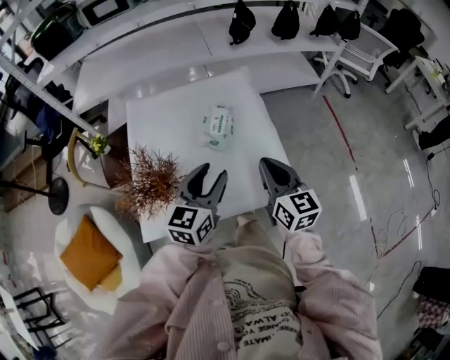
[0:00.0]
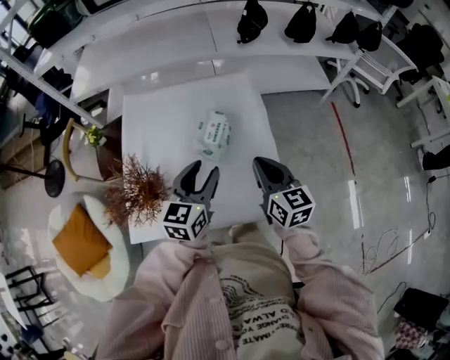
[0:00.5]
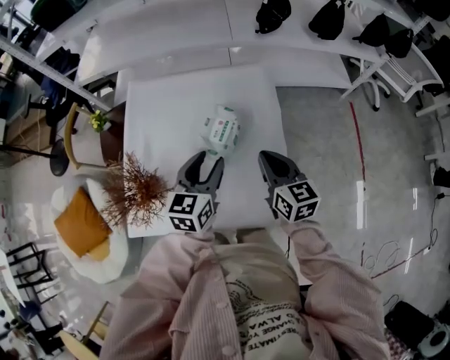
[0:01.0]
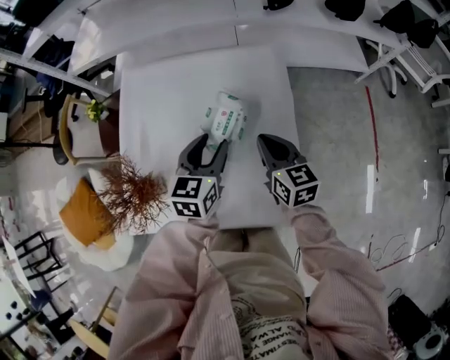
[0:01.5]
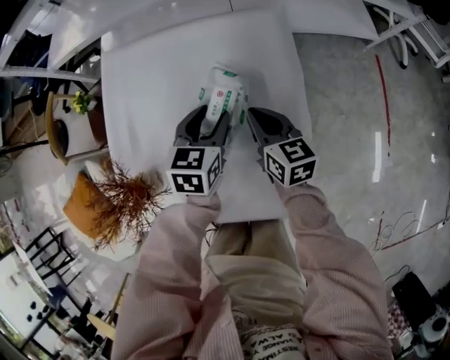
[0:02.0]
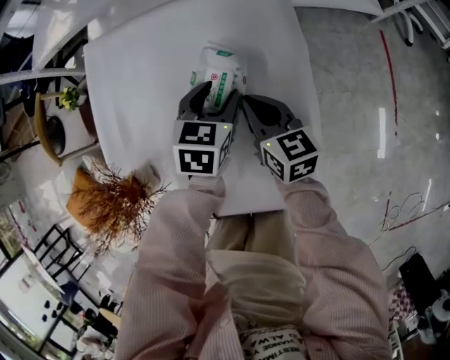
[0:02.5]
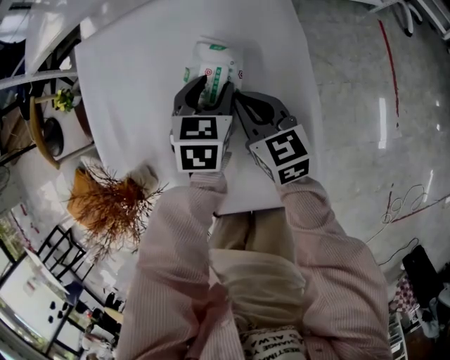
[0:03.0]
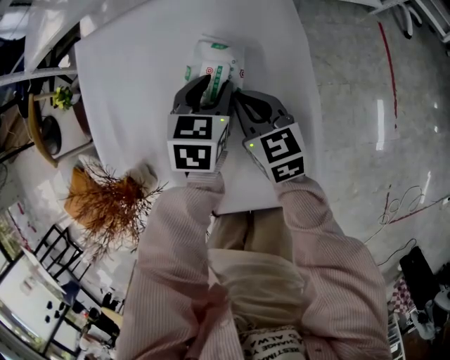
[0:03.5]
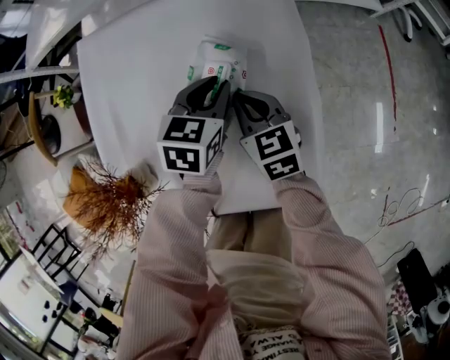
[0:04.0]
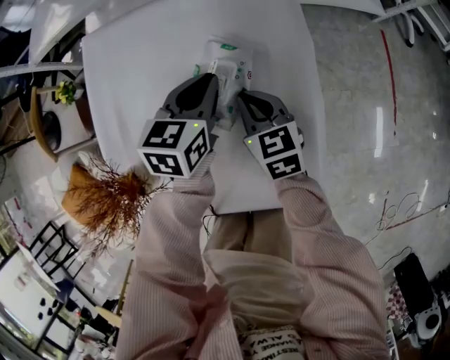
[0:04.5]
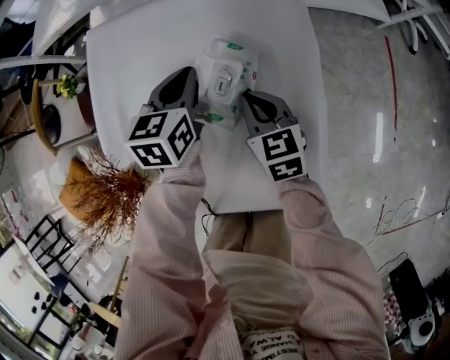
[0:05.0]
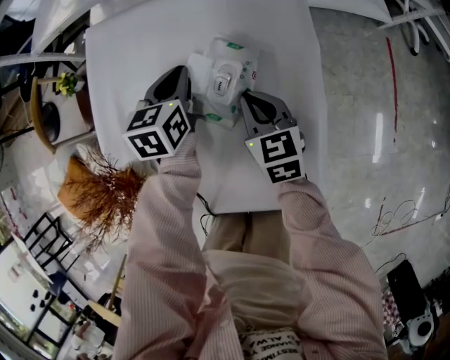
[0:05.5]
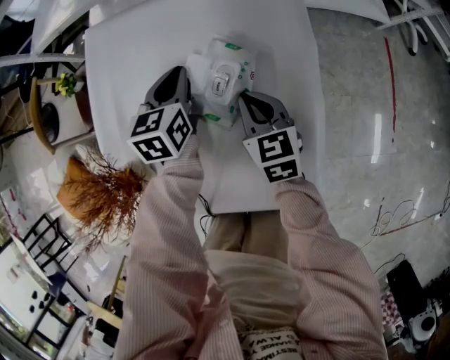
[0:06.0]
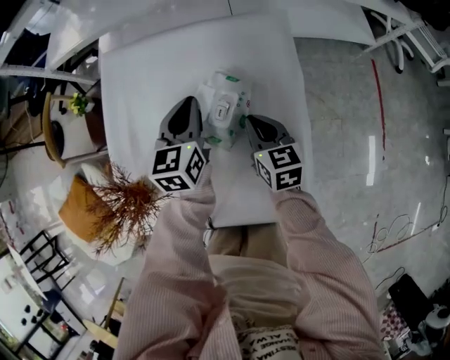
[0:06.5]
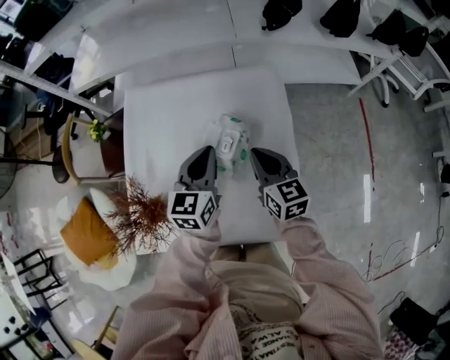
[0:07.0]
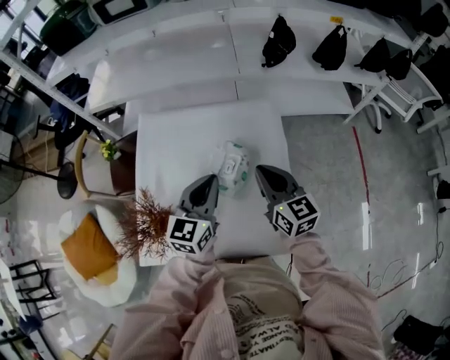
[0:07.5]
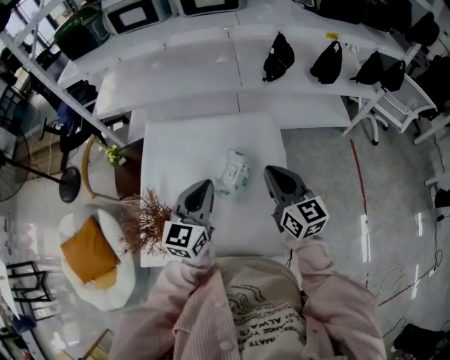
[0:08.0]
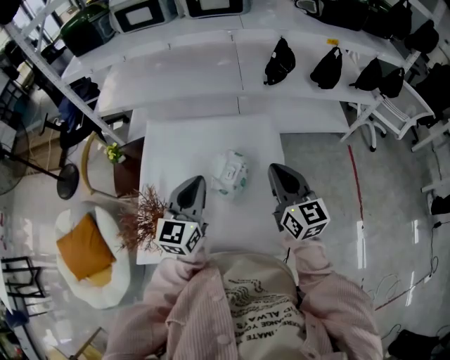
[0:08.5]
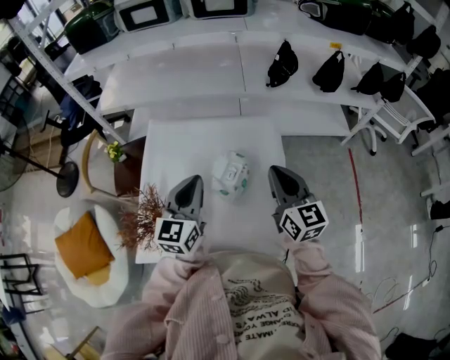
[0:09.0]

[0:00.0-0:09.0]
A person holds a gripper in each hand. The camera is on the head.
0:00.0 to 0:02.0: The grippers both shift forward and downward by approximately 30 cm. The right gripper turns by approximately 20 degrees. The left gripper changes its angle by approximately 30 degrees.
0:02.0 to 0:04.5: The right gripper moves roughly 5 cm, while the left gripper closes.
0:04.5 to 0:07.0: The two grippers go roughly 10 cm upward.
0:07.0 to 0:09.0: The left gripper shifts about 15 cm upward, backward and to the left. The right gripper moves upward, some 15 cm.

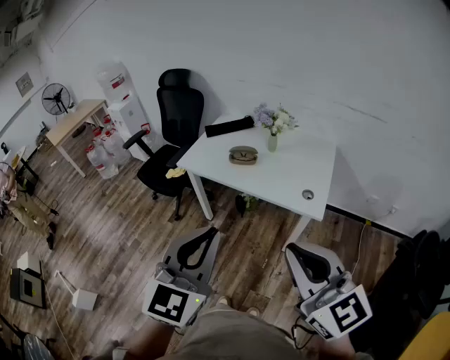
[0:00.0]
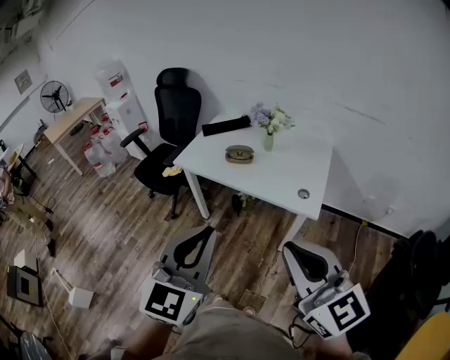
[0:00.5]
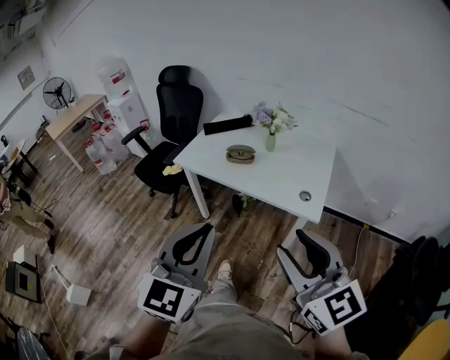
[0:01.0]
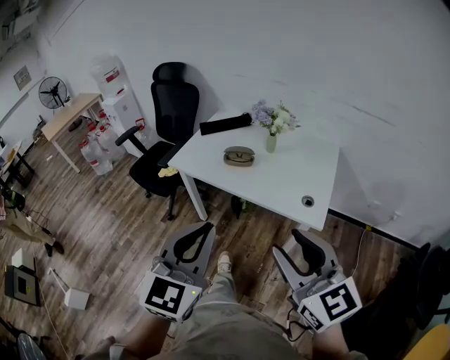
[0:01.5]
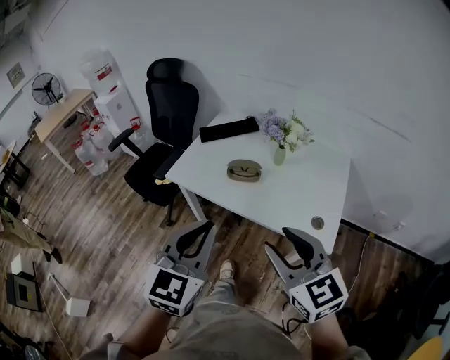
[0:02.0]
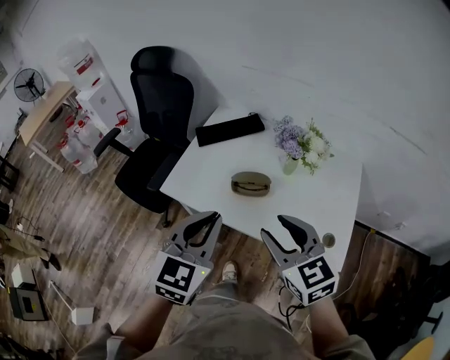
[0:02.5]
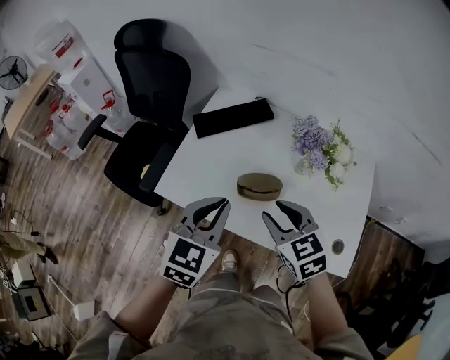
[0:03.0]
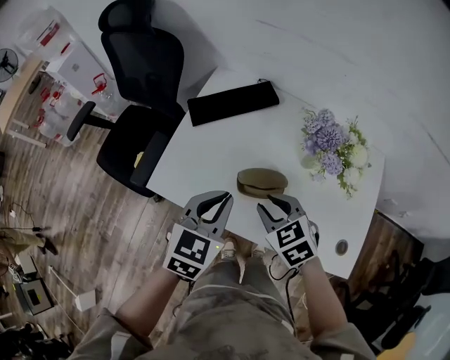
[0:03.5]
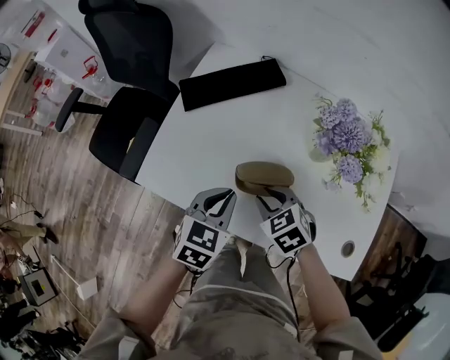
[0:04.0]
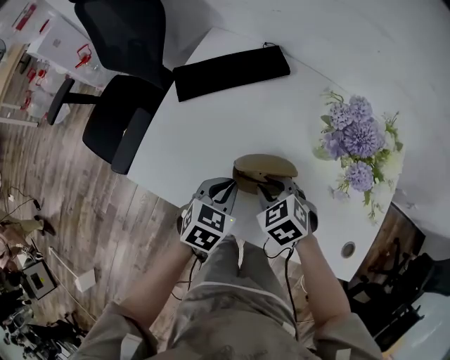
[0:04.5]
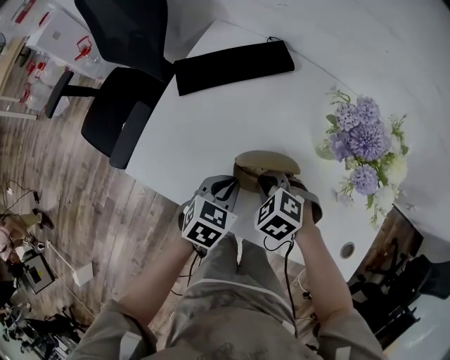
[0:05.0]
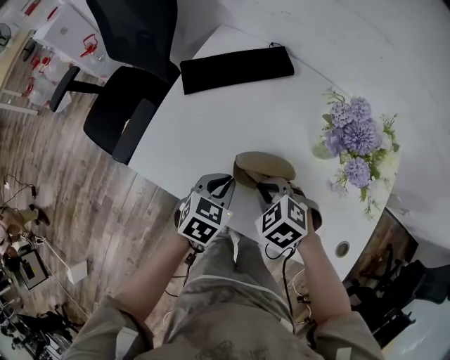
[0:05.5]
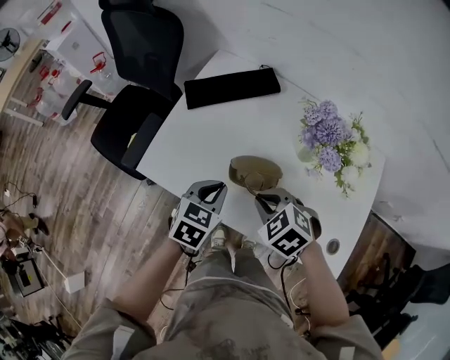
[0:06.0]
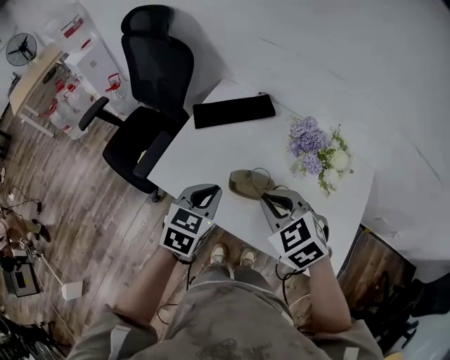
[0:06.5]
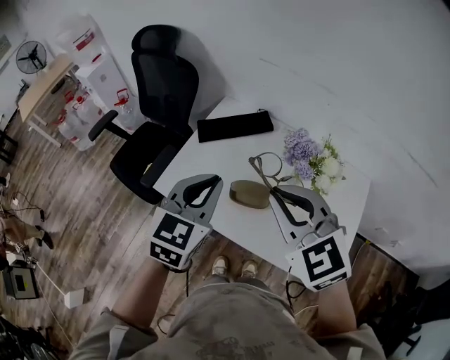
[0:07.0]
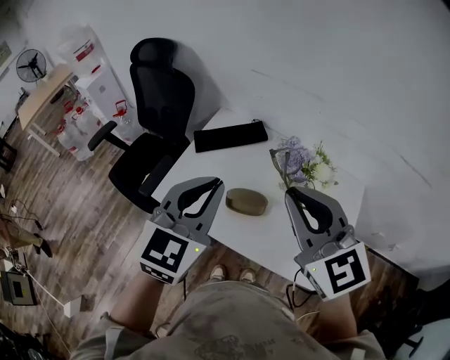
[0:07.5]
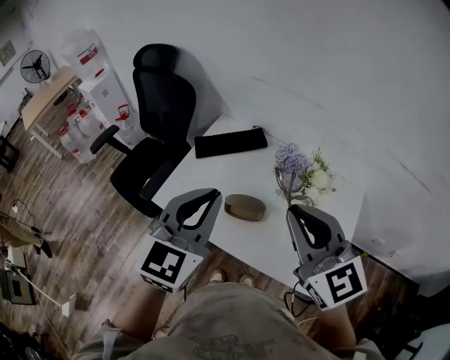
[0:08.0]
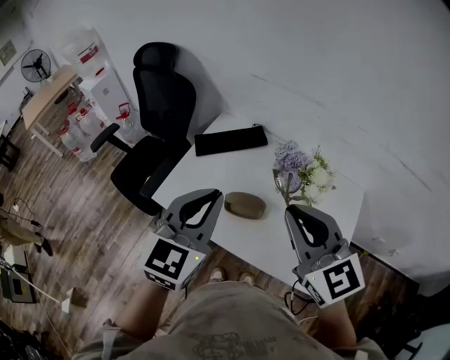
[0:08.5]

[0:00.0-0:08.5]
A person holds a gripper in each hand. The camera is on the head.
0:00.0 to 0:02.0: The right gripper moves forward and downward, about 25 cm, and opens. The left gripper heads forward, covering roughly 25 cm.
0:02.0 to 0:04.0: Both grippers travel together forward and downward, about 50 cm. The left gripper swivels roughly 30 degrees, while the right gripper tips its fingers downward by about 40 degrees.
0:04.0 to 0:06.5: The left gripper heads upward, covering roughly 10 cm. The right gripper moves upward, about 20 cm, and rotates roughly 20 degrees.
0:06.5 to 0:08.5: Both grippers travel together upward, about 20 cm. The right gripper angles its fingers upward, by about 30 degrees. Meanwhile the left gripper rotates about 30 degrees.

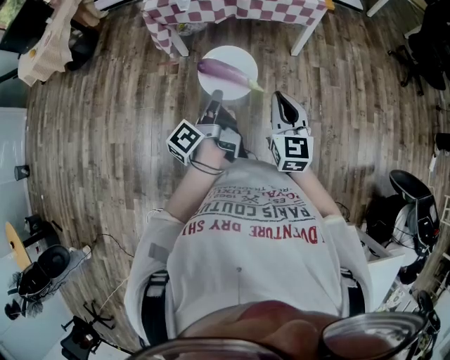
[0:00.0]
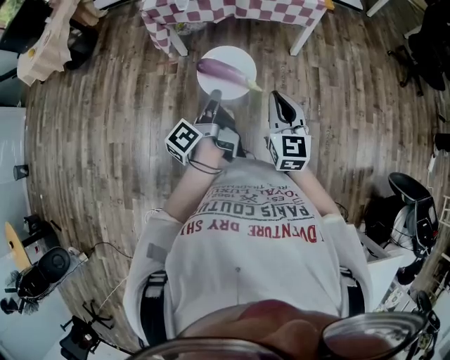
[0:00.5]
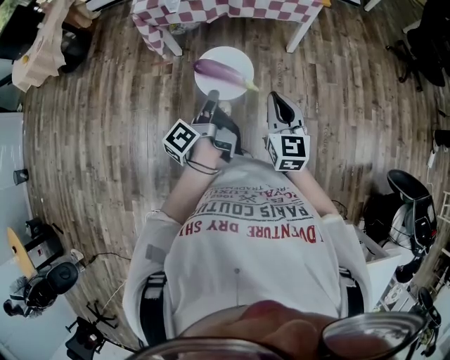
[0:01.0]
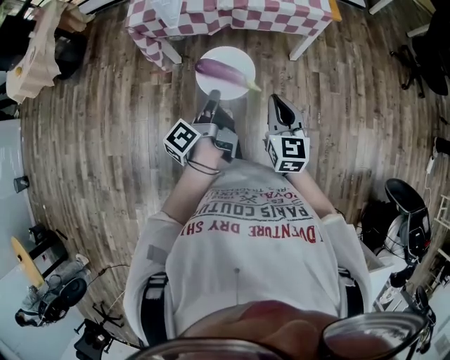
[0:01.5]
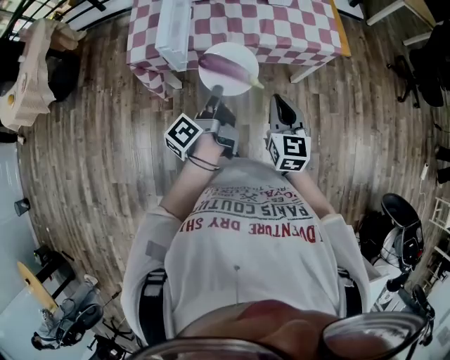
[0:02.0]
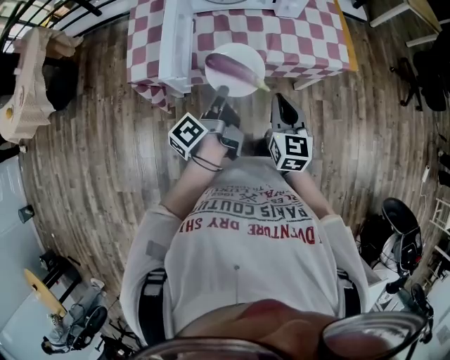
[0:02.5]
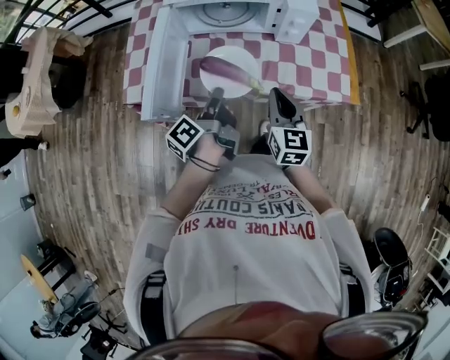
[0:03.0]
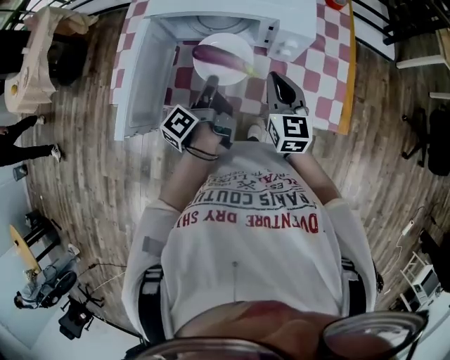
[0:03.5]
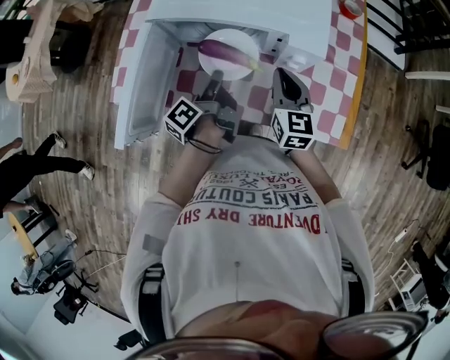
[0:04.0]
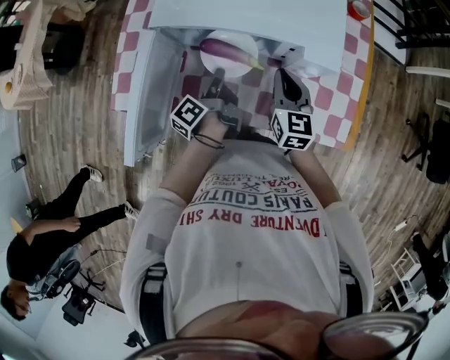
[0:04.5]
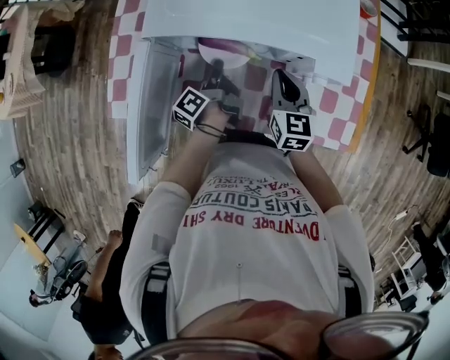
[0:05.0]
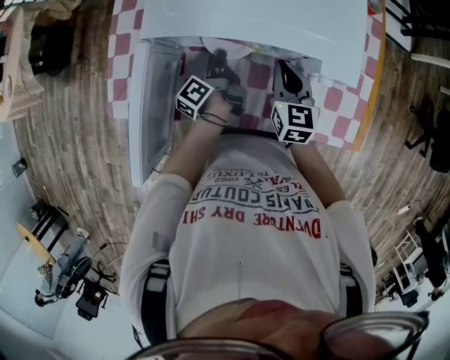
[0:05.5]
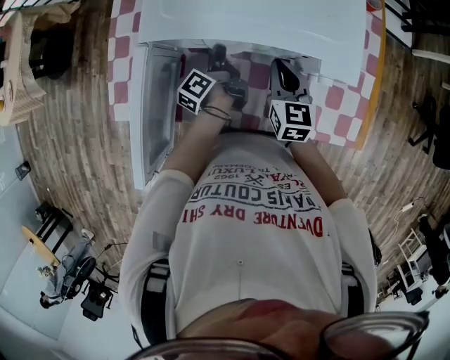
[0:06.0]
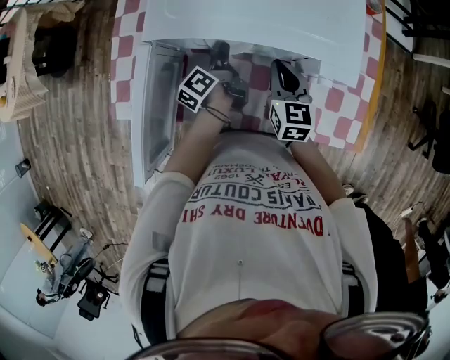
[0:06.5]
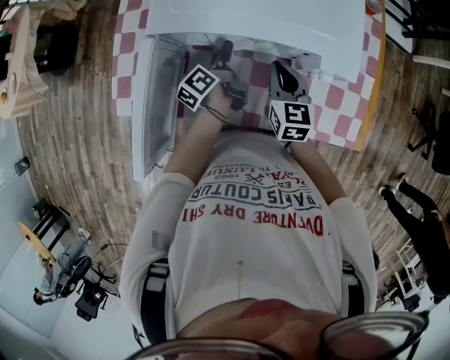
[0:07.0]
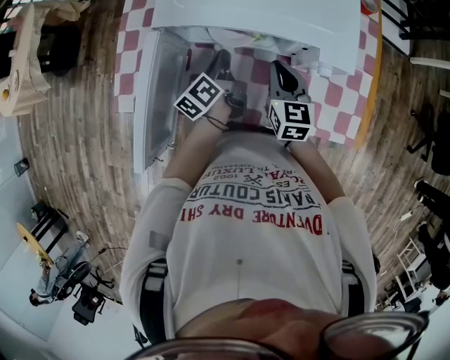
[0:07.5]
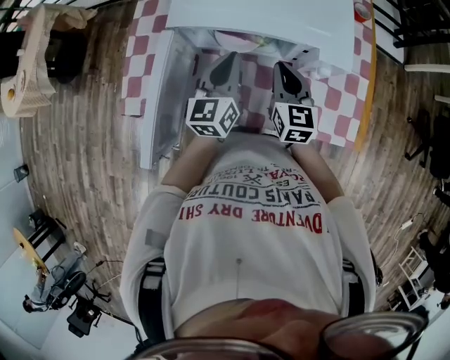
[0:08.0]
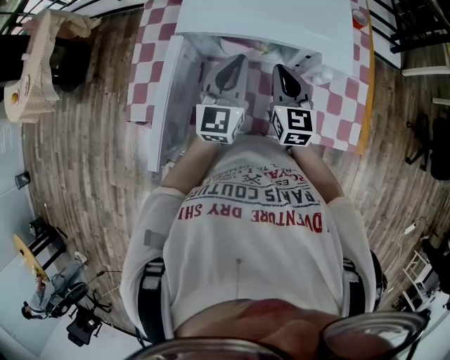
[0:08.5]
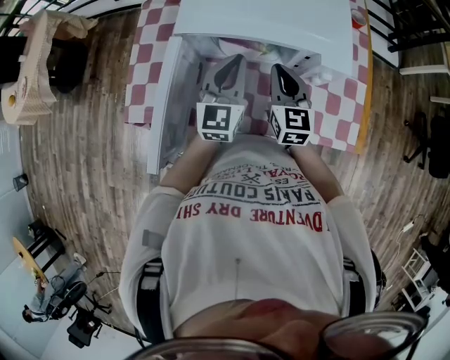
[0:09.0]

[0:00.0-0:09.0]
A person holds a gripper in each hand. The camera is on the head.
0:00.0 to 0:02.0: The right gripper changes place by roughly 35 cm.
0:02.0 to 0:04.5: The right gripper shifts by roughly 50 cm.
0:04.5 to 0:07.0: The right gripper shifts by about 5 cm.
0:07.0 to 0:09.0: The right gripper moves upward, about 10 cm.
